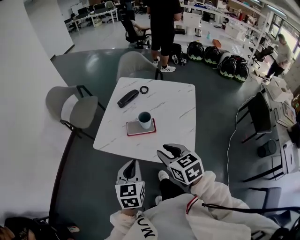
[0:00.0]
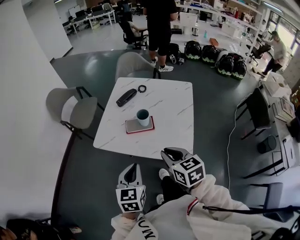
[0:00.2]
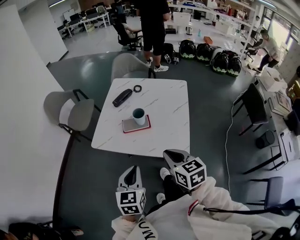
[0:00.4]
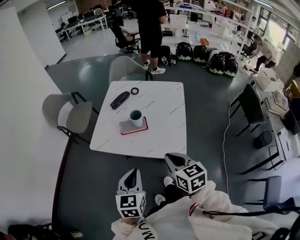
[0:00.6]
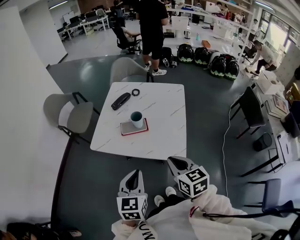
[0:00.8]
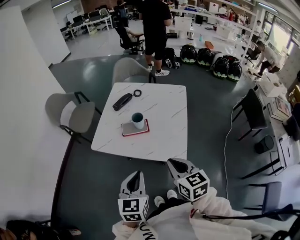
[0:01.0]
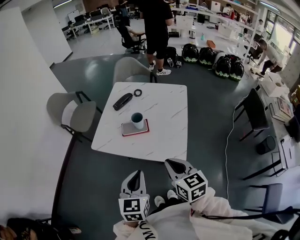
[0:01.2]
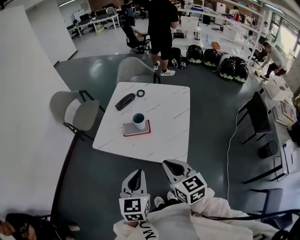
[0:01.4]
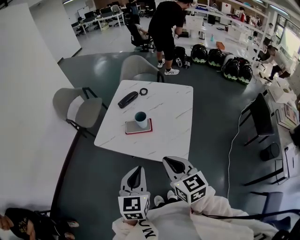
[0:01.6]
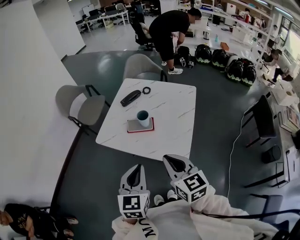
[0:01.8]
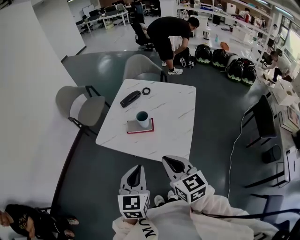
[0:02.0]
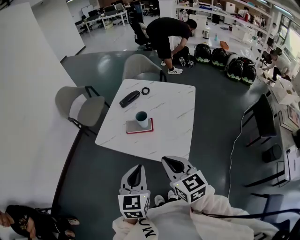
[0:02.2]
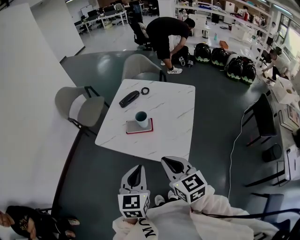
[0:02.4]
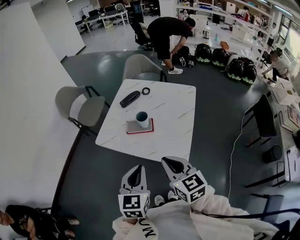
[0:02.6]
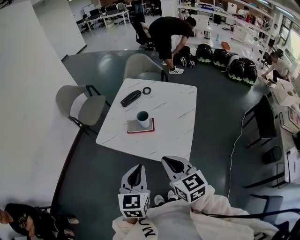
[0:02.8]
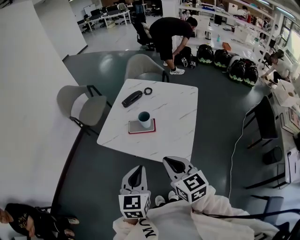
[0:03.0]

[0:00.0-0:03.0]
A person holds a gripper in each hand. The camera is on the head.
0:00.0 to 0:01.6: The right gripper goes some 10 cm backward and upward, and closes its fingers; the left gripper shifts about 10 cm backward, upward and to the right.
0:01.6 to 0:03.0: Both grippers stay about where they are.

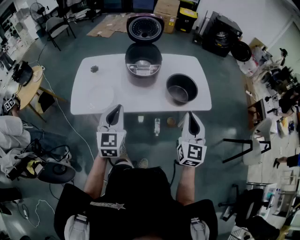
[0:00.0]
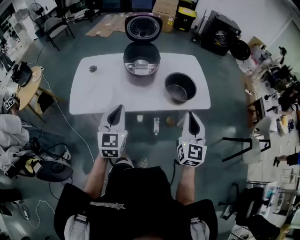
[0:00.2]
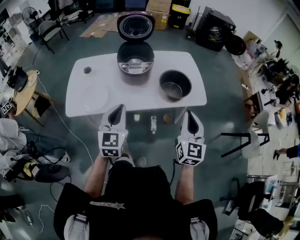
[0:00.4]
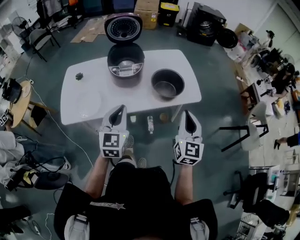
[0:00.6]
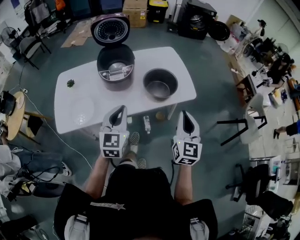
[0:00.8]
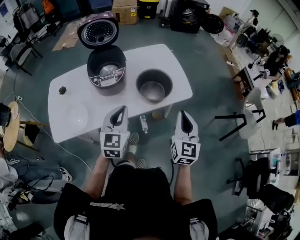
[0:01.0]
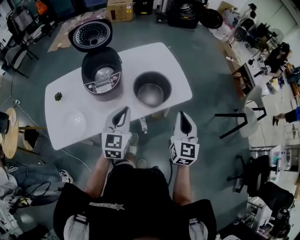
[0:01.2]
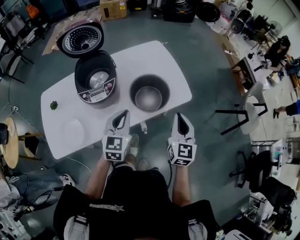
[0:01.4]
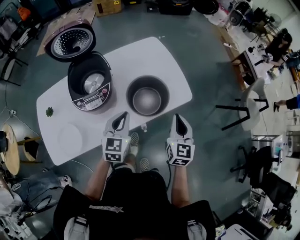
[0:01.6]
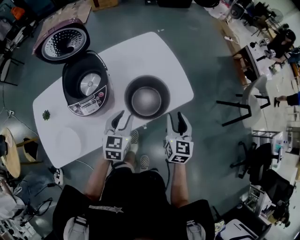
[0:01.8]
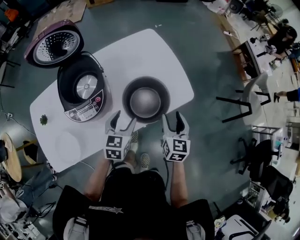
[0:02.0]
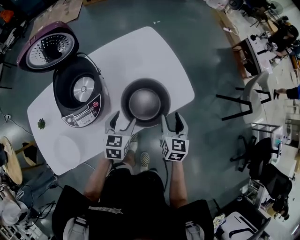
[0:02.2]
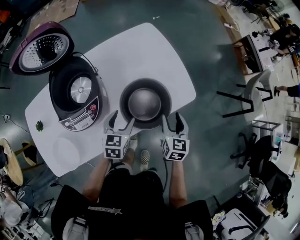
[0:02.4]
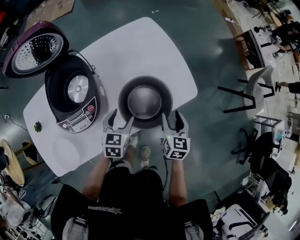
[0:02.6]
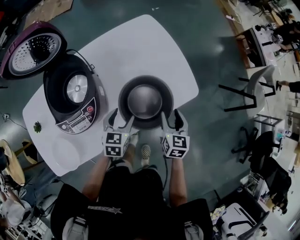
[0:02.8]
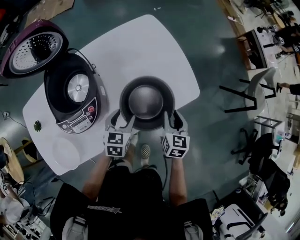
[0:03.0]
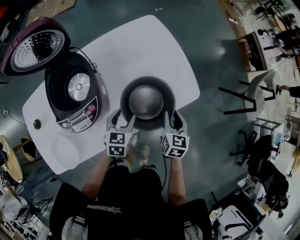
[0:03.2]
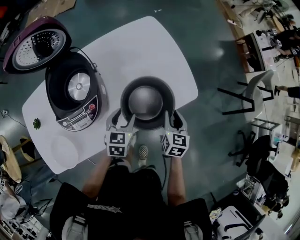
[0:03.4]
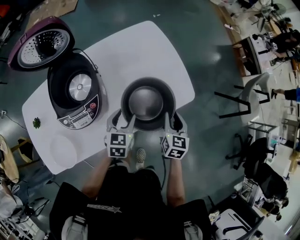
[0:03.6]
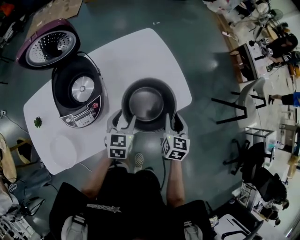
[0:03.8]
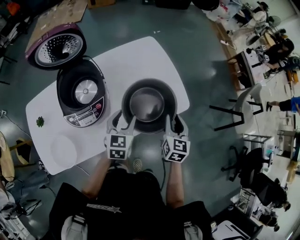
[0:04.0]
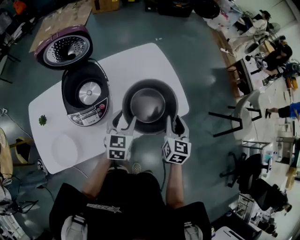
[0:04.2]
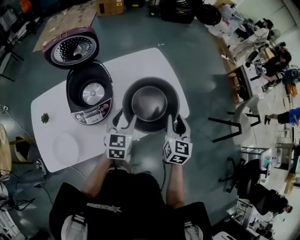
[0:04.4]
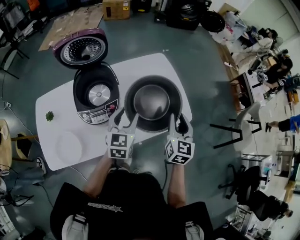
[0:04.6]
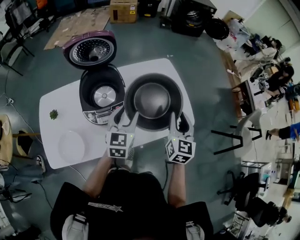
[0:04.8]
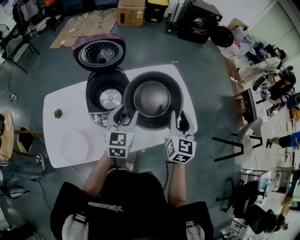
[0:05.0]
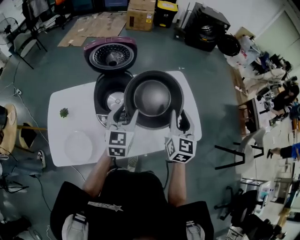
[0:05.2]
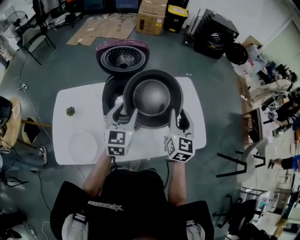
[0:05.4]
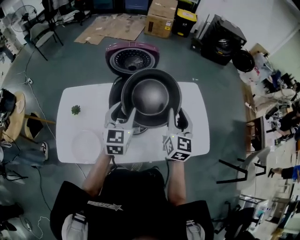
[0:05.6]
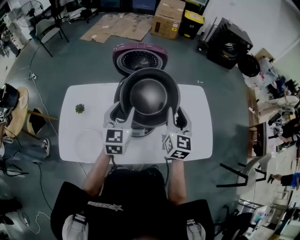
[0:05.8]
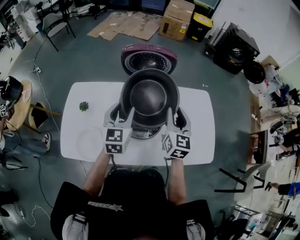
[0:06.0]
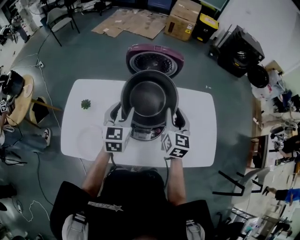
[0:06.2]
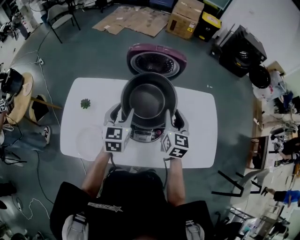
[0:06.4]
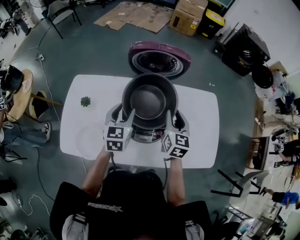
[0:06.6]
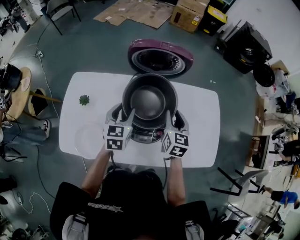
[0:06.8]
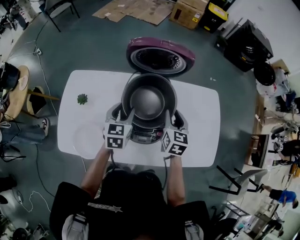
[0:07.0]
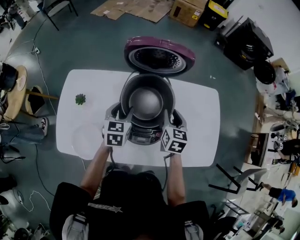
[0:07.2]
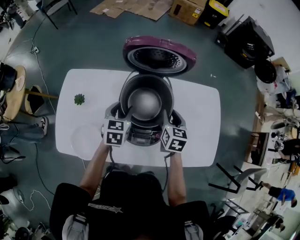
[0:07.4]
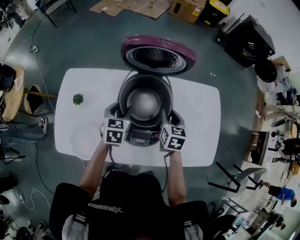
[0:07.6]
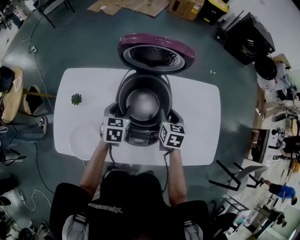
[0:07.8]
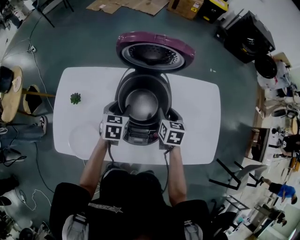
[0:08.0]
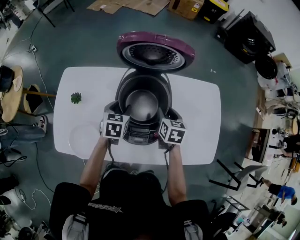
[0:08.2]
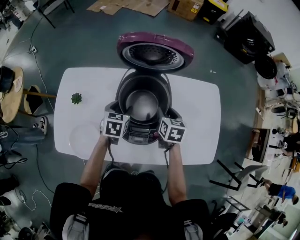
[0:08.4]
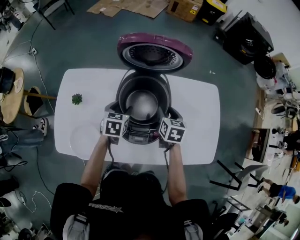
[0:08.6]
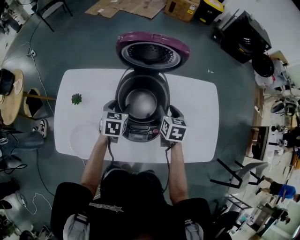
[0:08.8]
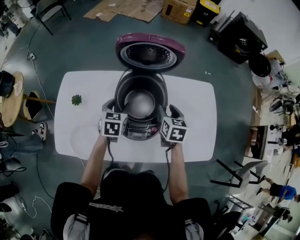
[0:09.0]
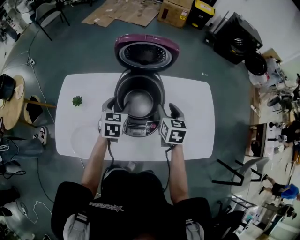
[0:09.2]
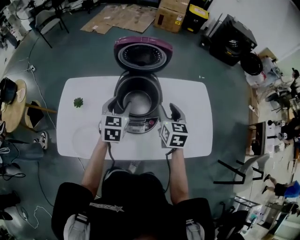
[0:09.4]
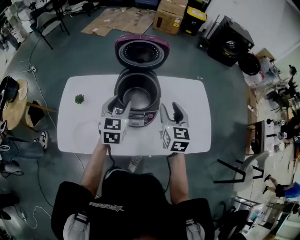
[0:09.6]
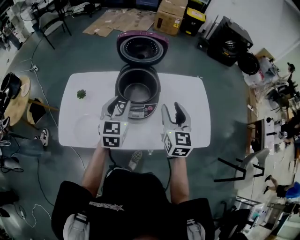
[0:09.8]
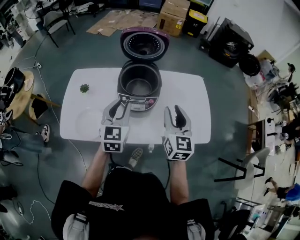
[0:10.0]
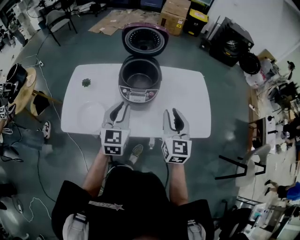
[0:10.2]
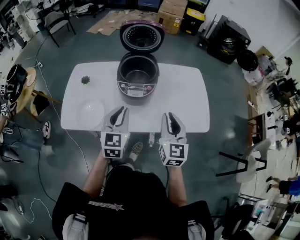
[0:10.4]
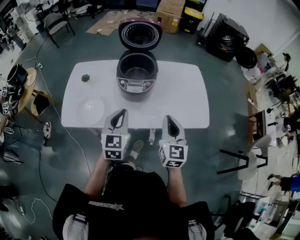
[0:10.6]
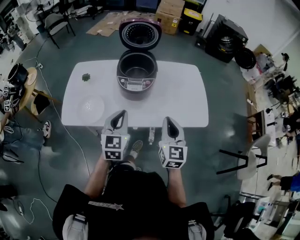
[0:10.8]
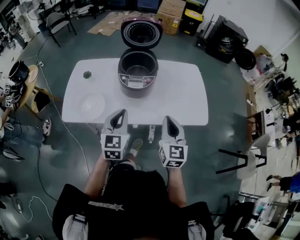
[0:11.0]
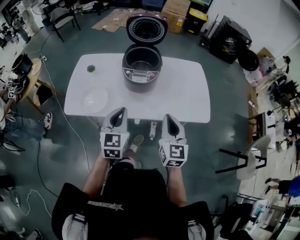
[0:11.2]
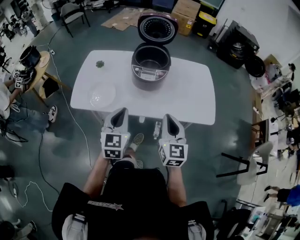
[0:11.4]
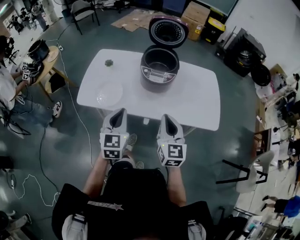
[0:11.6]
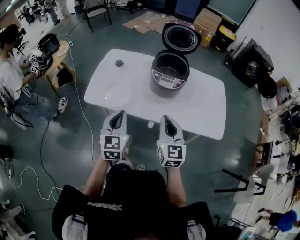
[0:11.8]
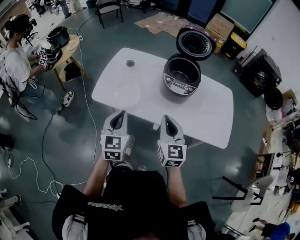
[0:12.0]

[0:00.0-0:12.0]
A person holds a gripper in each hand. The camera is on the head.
0:00.0 to 0:01.6: The left gripper heads forward, to the right and downward, covering some 30 cm, and changes its angle by approximately 30 degrees; the right gripper is displaced forward, downward and to the right by about 25 cm, and changes its angle by approximately 30 degrees.
0:01.6 to 0:03.0: The grippers both shift downward and forward by approximately 20 cm. The right gripper swivels some 20 degrees, and opens. The left gripper rotates some 20 degrees, and opens.
0:03.0 to 0:04.4: The two grippers go roughly 15 cm upward. The left gripper turns by about 20 degrees.
0:04.4 to 0:06.0: The right gripper shifts by about 30 cm, and swivels approximately 30 degrees, while the left gripper changes place by some 30 cm, and turns by roughly 30 degrees.
0:06.0 to 0:07.6: Both grippers move downward, some 15 cm. The left gripper rotates about 30 degrees, while the right gripper changes its angle by roughly 30 degrees.
0:07.6 to 0:09.0: There are only small adjustments of the grippers.
0:09.0 to 0:10.4: The grippers both shift backward and upward by approximately 35 cm. The right gripper tilts its fingers about 30 degrees upward, and closes. The left gripper swivels about 30 degrees, and closes its fingers.
0:10.4 to 0:12.0: Both grippers travel together to the left and backward, roughly 20 cm. The left gripper turns by some 20 degrees, while the right gripper changes its angle by roughly 20 degrees.

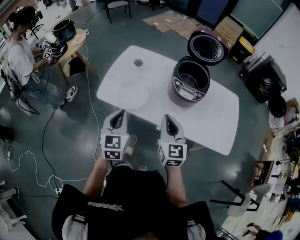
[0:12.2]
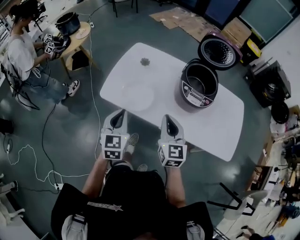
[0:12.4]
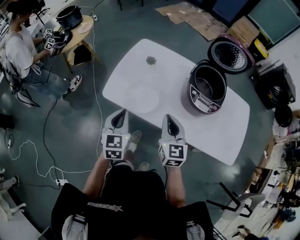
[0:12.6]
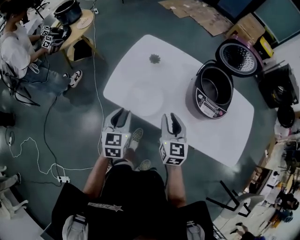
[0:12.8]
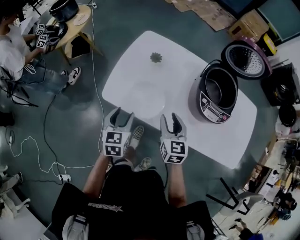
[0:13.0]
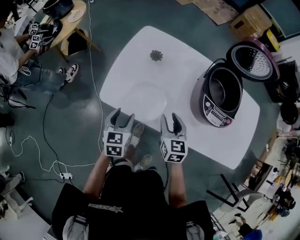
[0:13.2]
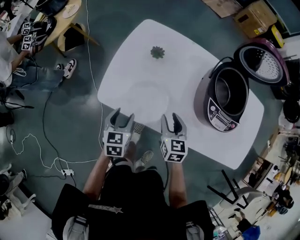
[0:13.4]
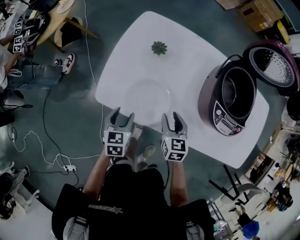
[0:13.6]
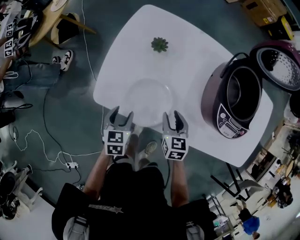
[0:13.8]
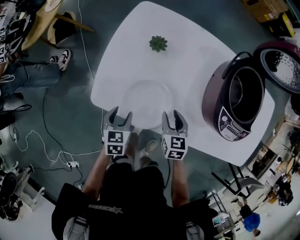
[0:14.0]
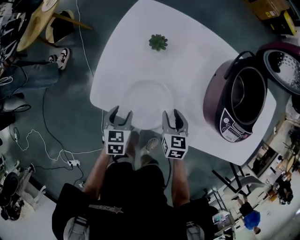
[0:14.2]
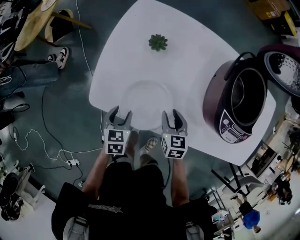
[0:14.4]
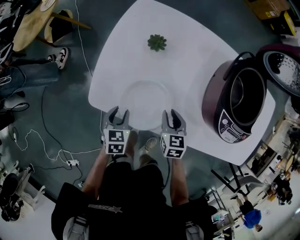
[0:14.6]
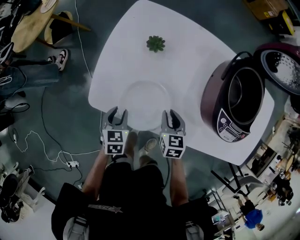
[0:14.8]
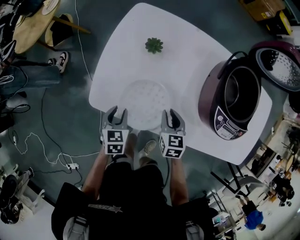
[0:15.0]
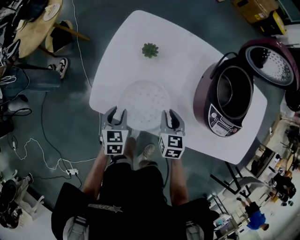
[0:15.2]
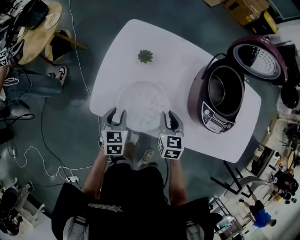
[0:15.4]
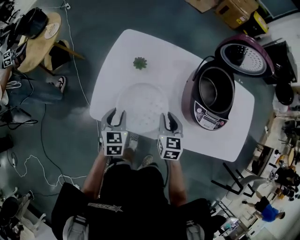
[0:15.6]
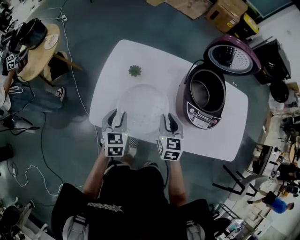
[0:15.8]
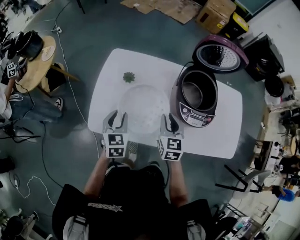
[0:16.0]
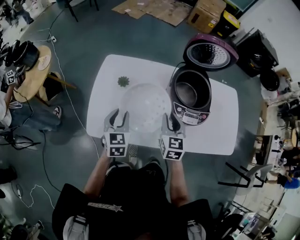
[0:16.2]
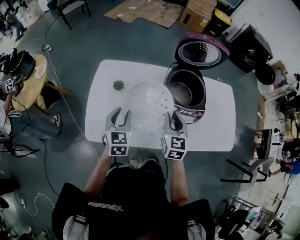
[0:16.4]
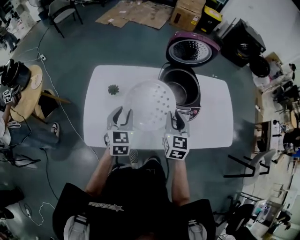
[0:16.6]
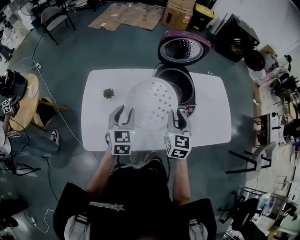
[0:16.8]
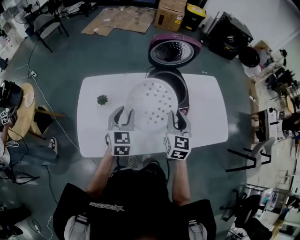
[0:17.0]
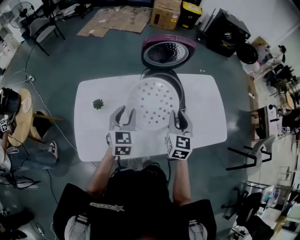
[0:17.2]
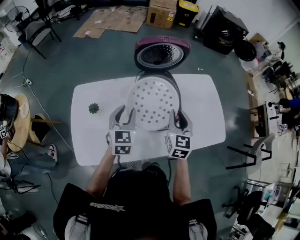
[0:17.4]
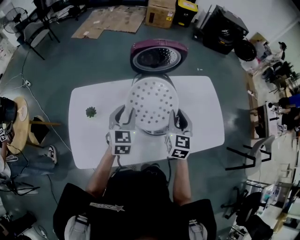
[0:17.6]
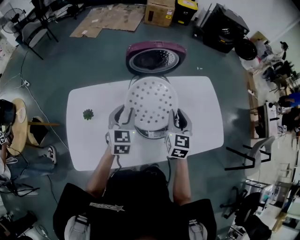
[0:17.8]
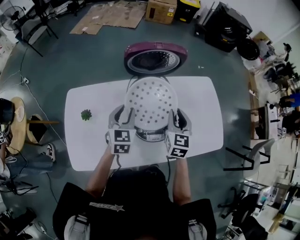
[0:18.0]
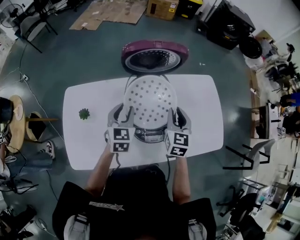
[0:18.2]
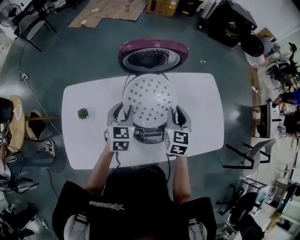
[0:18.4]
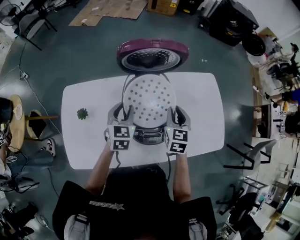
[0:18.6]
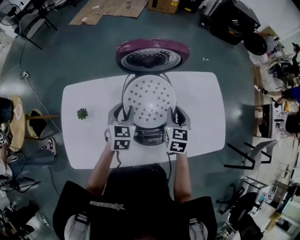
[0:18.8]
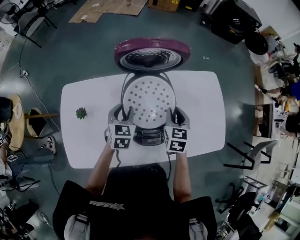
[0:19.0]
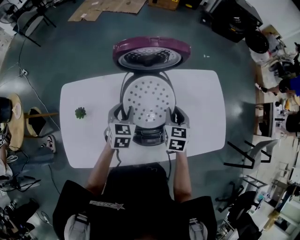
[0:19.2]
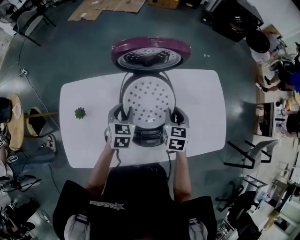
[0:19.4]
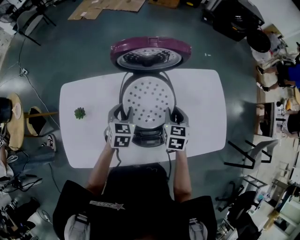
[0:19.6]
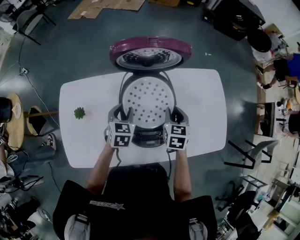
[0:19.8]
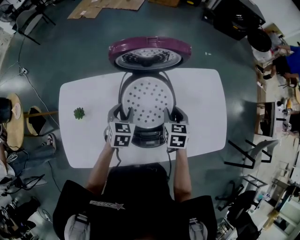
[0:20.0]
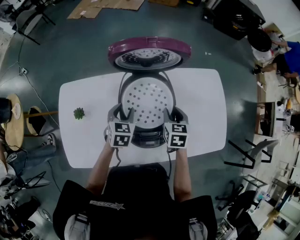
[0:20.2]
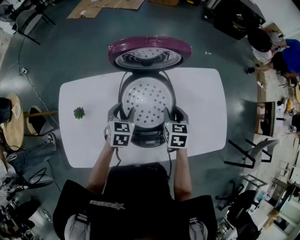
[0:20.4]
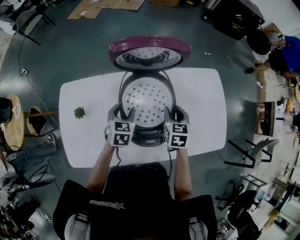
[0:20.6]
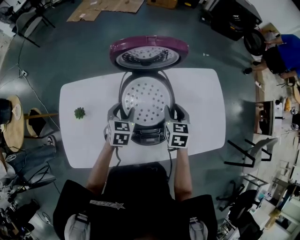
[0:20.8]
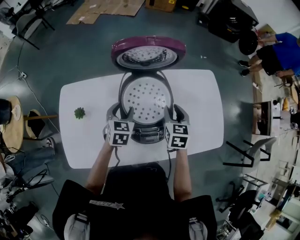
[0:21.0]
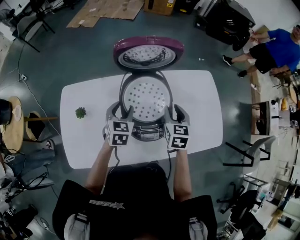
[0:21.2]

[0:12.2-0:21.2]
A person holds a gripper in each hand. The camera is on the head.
0:12.2 to 0:13.8: The grippers both shift downward and forward by about 35 cm. The left gripper tilts its fingers about 30 degrees downward, and opens up, while the right gripper points its fingers about 30 degrees further downward, and opens.
0:13.8 to 0:15.2: The right gripper closes its fingers.
0:15.2 to 0:16.6: The left gripper moves upward, to the right and forward, approximately 25 cm, and rotates approximately 30 degrees, while the right gripper heads upward and to the right, covering roughly 25 cm, and rotates roughly 30 degrees.
0:16.6 to 0:18.2: Both grippers travel together forward and to the right, some 20 cm.
0:18.2 to 0:19.8: Both grippers travel together downward, some 10 cm.
0:19.8 to 0:21.2: The right gripper goes approximately 5 cm upward.
